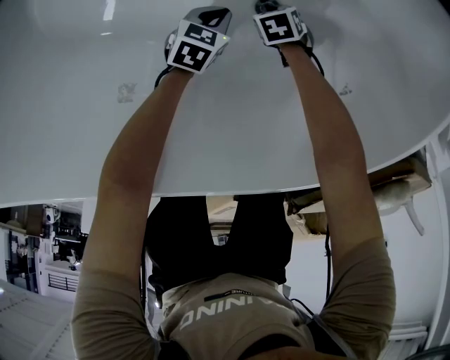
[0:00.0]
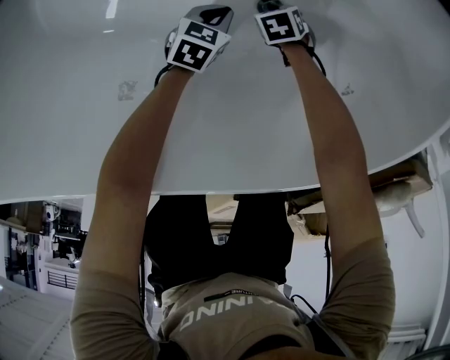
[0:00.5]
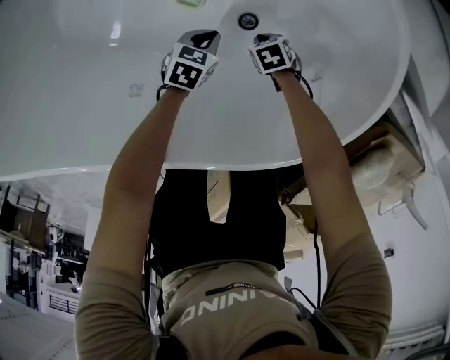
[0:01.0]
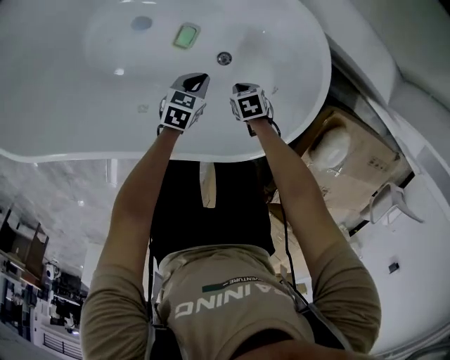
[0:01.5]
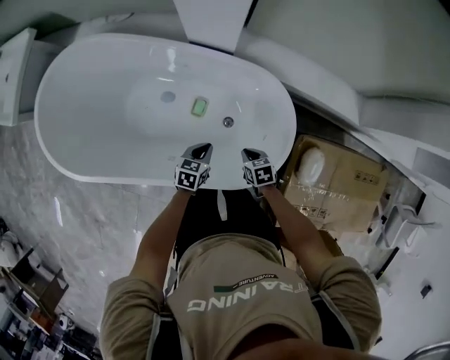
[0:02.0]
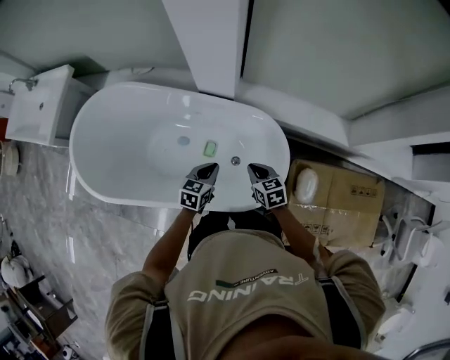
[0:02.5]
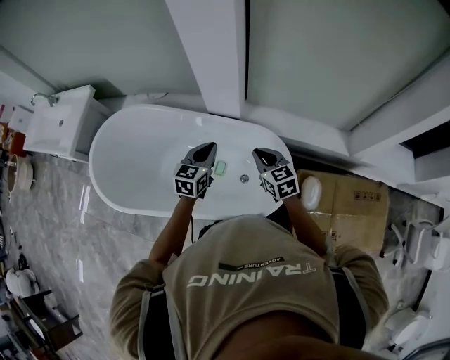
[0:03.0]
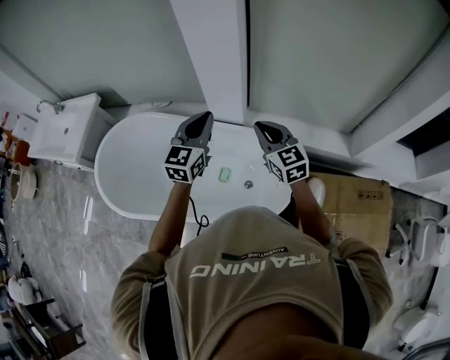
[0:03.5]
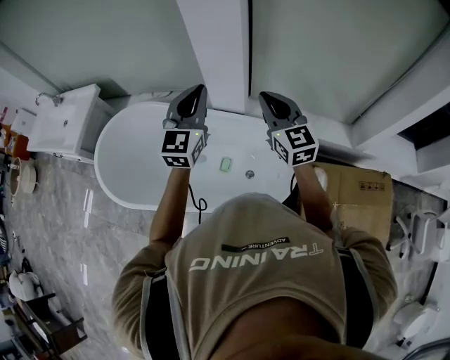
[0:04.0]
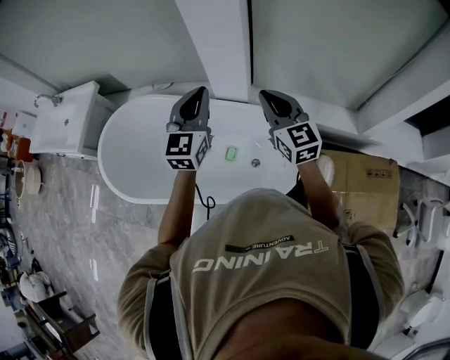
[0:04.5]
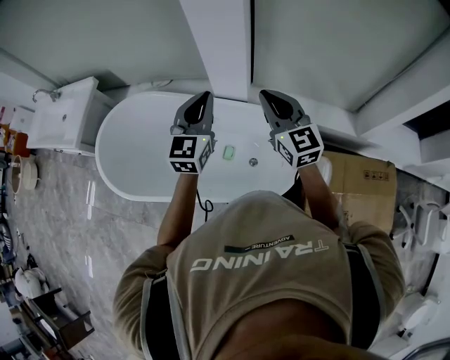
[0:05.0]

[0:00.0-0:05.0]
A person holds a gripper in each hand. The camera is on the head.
0:00.0 to 0:02.5: The grippers both shift upward by about 70 cm. The left gripper turns by about 30 degrees, while the right gripper angles its fingers upward, by some 40 degrees.
0:02.5 to 0:05.0: The two grippers go some 35 cm upward. The right gripper angles its fingers upward, by some 40 degrees; the left gripper angles its fingers upward, by about 30 degrees.

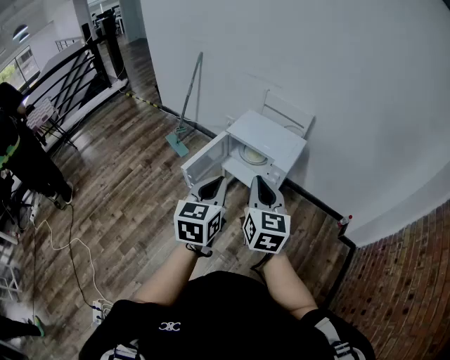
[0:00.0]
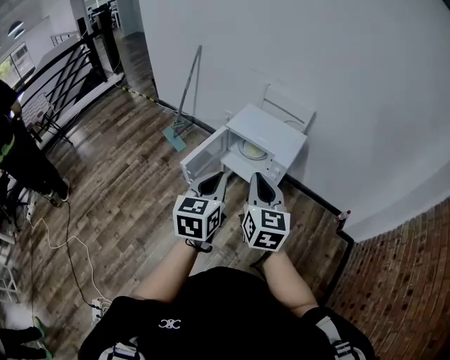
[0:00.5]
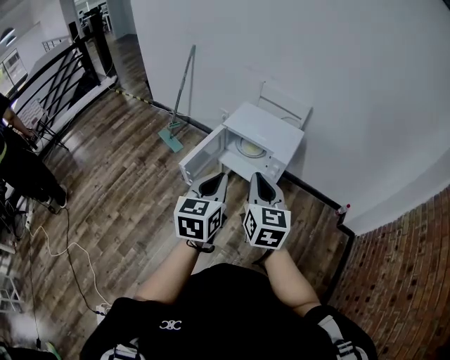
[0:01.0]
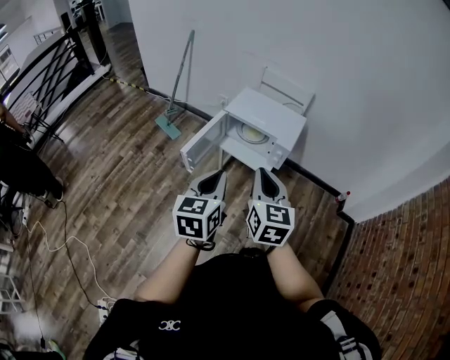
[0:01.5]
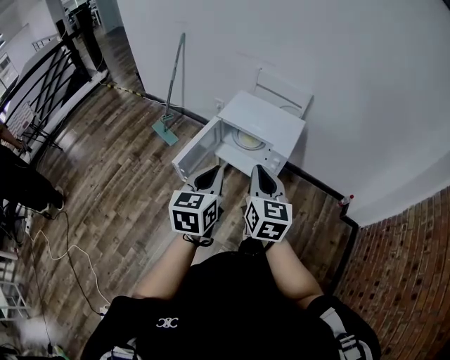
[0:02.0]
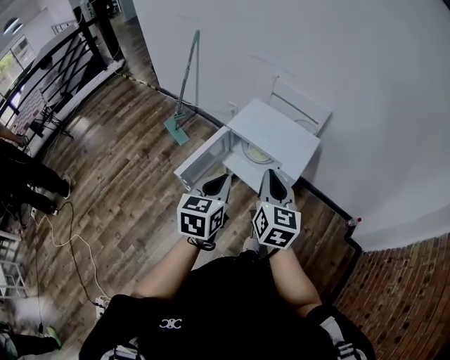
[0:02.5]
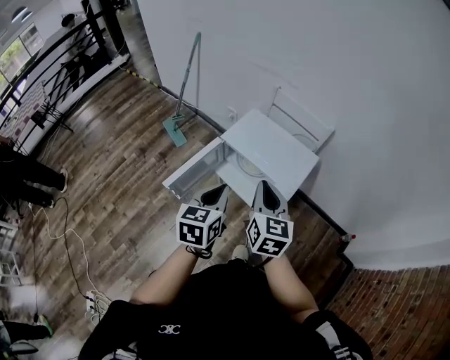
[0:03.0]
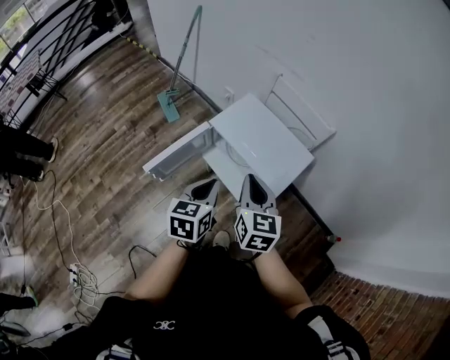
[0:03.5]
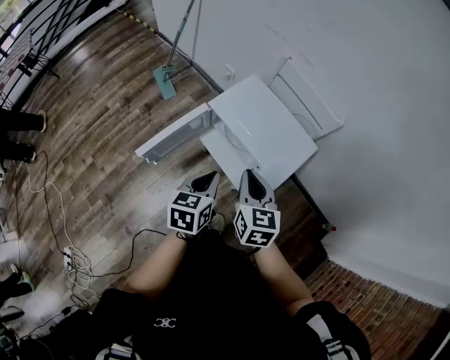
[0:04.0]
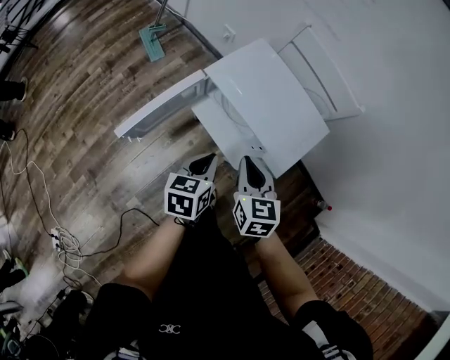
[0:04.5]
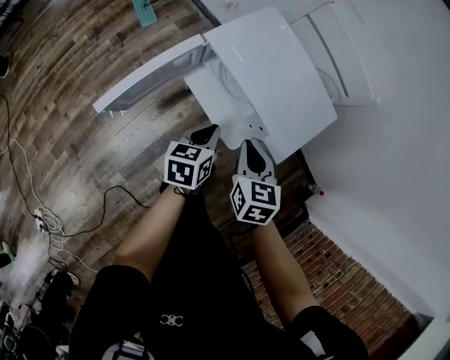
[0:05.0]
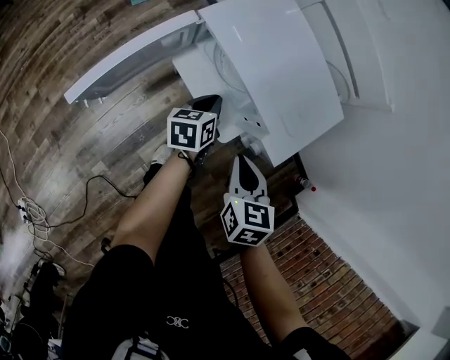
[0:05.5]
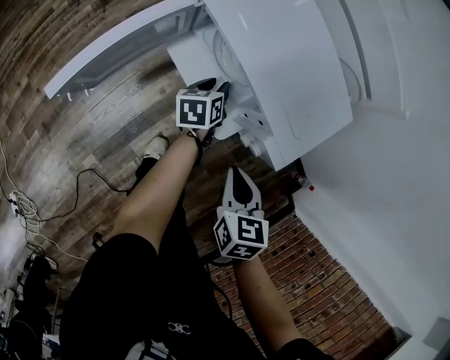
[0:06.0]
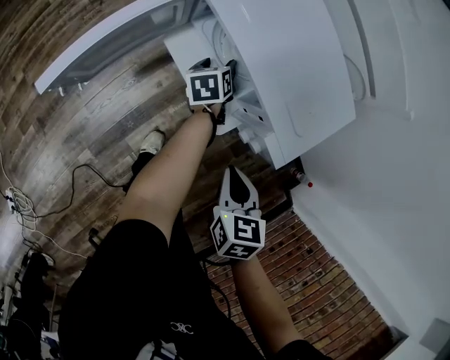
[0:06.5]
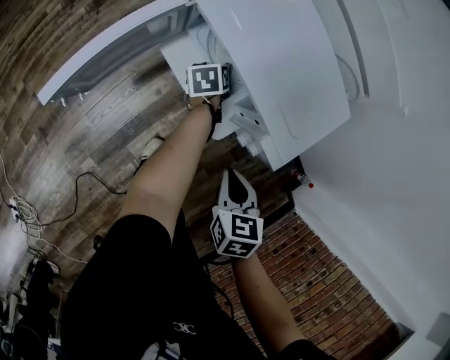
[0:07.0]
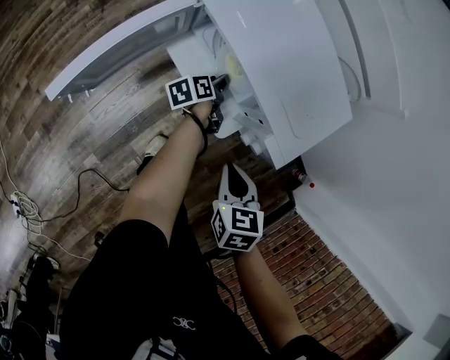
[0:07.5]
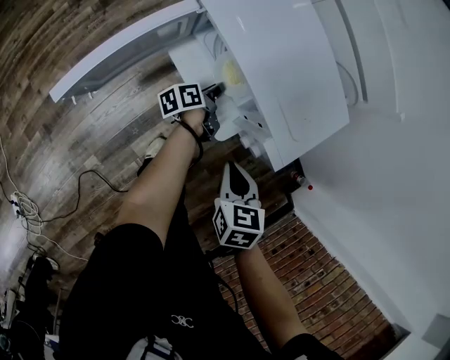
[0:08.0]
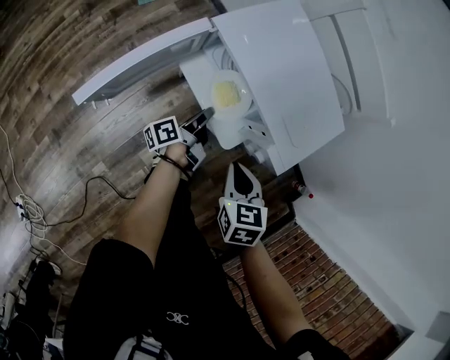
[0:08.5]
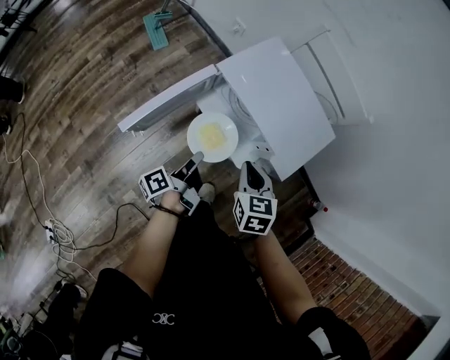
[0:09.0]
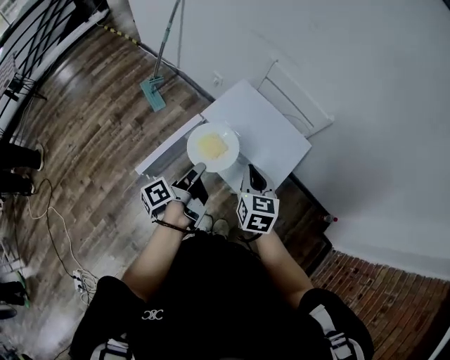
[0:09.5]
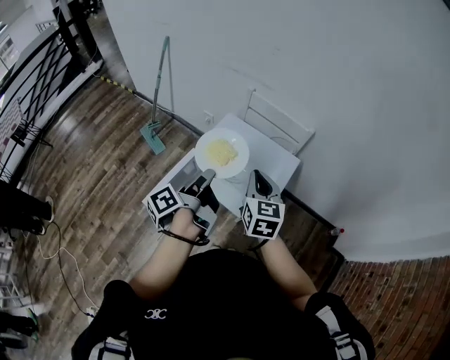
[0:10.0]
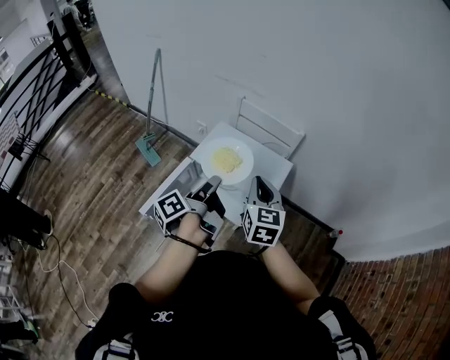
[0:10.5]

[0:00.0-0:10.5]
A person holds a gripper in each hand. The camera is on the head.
0:00.0 to 0:02.0: The right gripper travels downward and forward by approximately 10 cm, while the left gripper shifts some 10 cm forward and downward.
0:02.0 to 0:04.0: The right gripper heads forward and downward, covering about 25 cm, and turns by about 20 degrees, while the left gripper shifts some 25 cm forward, downward and to the right, and rotates roughly 20 degrees.
0:04.0 to 0:06.5: The left gripper travels downward and forward by approximately 40 cm, changes its angle by approximately 30 degrees, and opens its fingers. Meanwhile the right gripper is displaced downward by some 25 cm, and changes its angle by roughly 30 degrees.
0:06.5 to 0:08.5: The left gripper travels backward and upward by roughly 10 cm, angles its fingers upward, by approximately 30 degrees, and closes up. The right gripper changes place by approximately 5 cm.
0:08.5 to 0:10.5: The grippers both shift upward by some 40 cm. The right gripper tilts its fingers roughly 40 degrees upward.

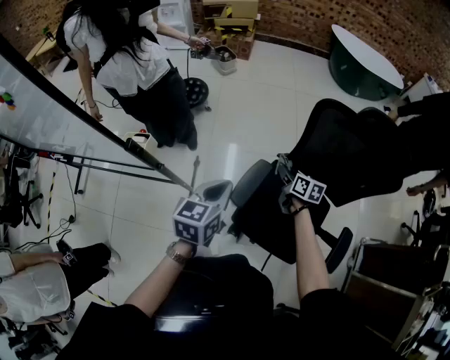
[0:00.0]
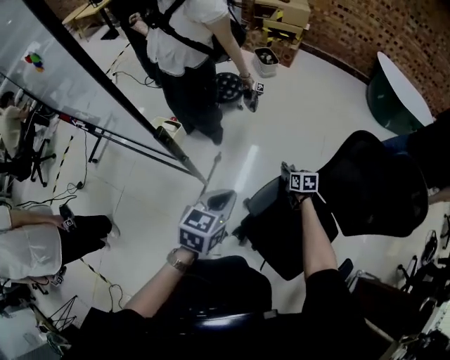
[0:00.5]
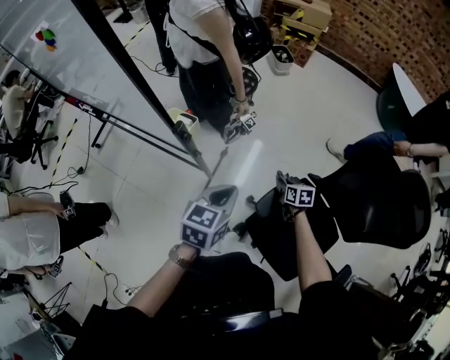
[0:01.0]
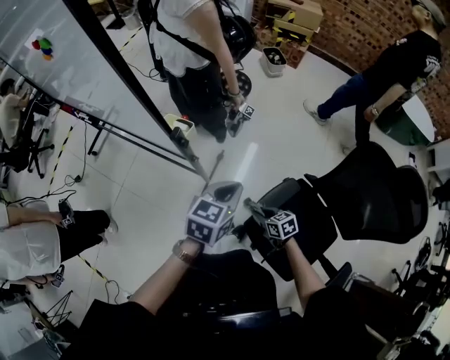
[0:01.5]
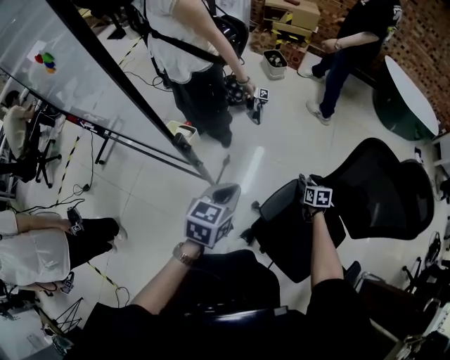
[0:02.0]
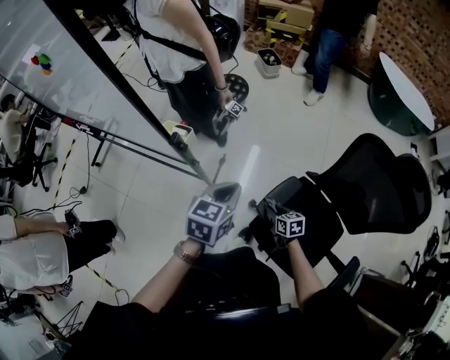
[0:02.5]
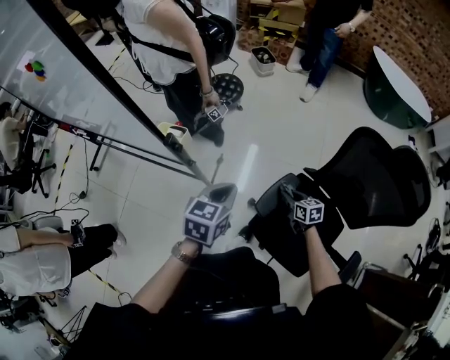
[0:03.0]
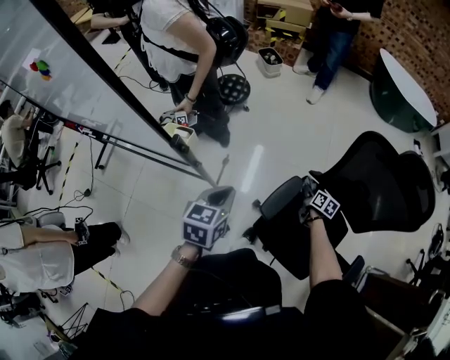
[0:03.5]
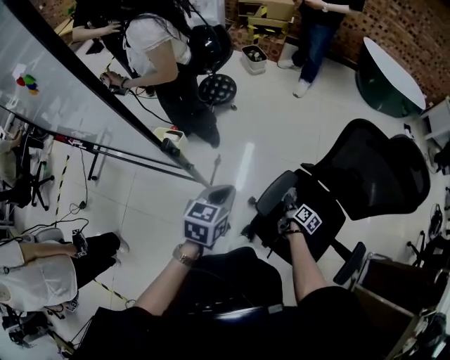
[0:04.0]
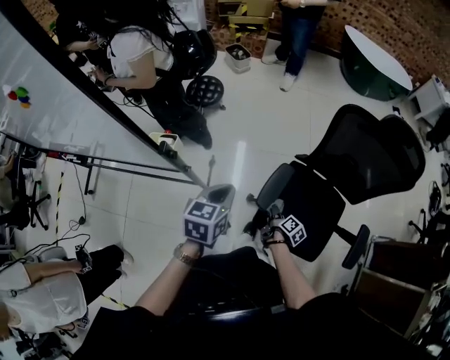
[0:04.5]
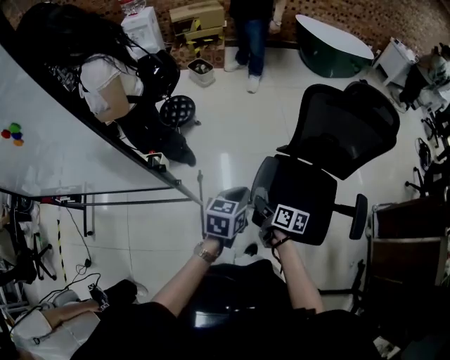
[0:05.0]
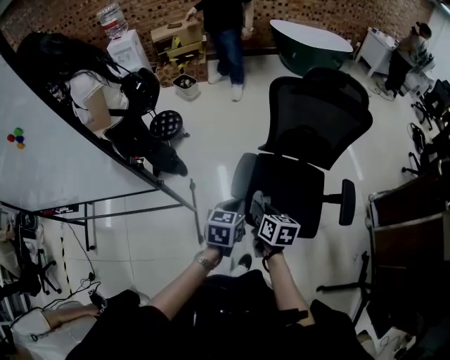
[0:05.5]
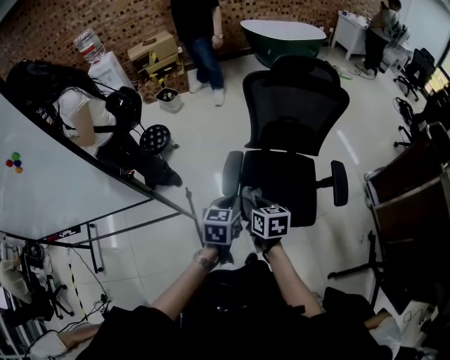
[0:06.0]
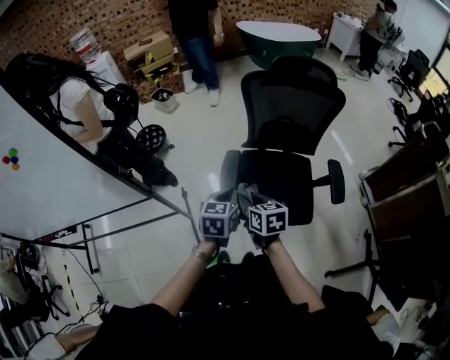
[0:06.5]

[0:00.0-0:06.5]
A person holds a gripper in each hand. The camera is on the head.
0:00.0 to 0:02.0: The right gripper moves downward, about 15 cm, and swivels about 30 degrees, while the left gripper ends up some 10 cm from where it was.
0:02.0 to 0:04.5: The right gripper shifts by about 20 cm, and rotates around the line of its fingers by some 60 degrees, clockwise from behind.
0:04.5 to 0:06.5: The left gripper travels to the right and backward by roughly 20 cm; the right gripper is displaced upward and backward by approximately 30 cm, and twists some 40 degrees counterclockwise, seen from behind.

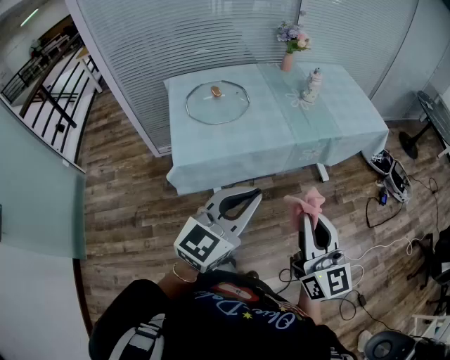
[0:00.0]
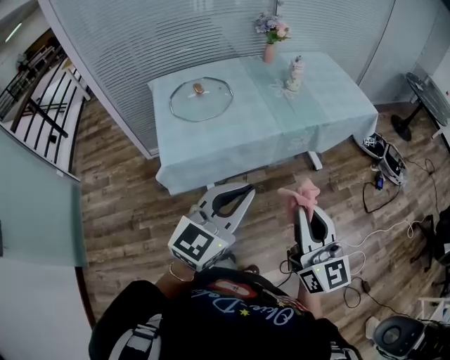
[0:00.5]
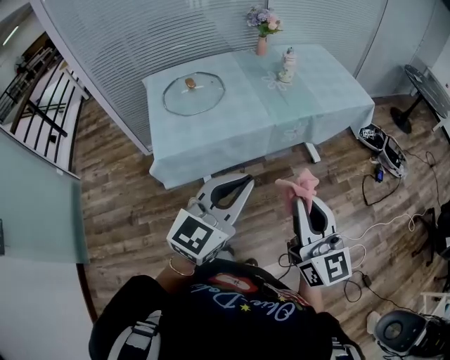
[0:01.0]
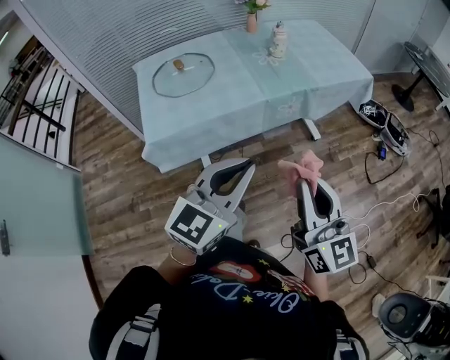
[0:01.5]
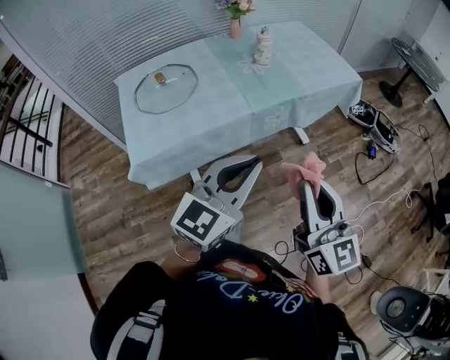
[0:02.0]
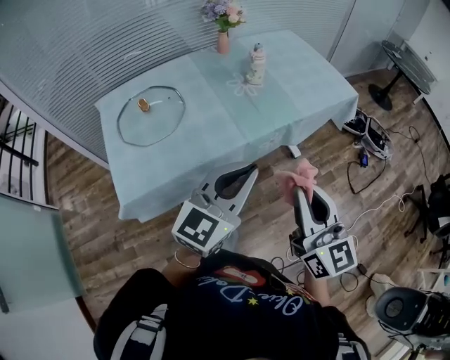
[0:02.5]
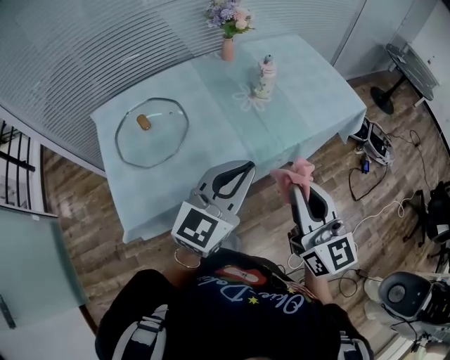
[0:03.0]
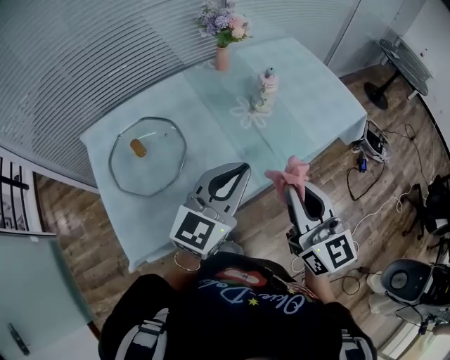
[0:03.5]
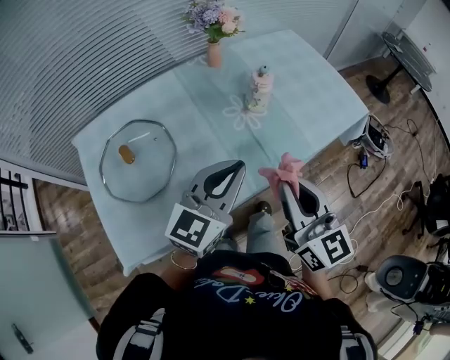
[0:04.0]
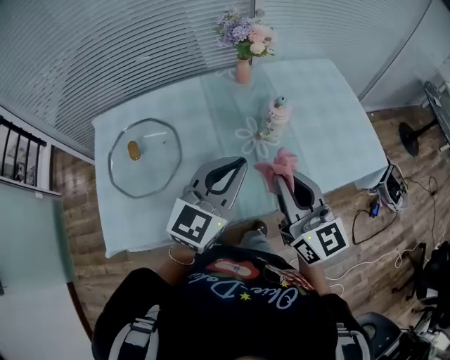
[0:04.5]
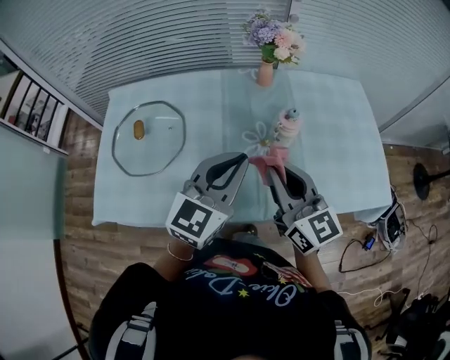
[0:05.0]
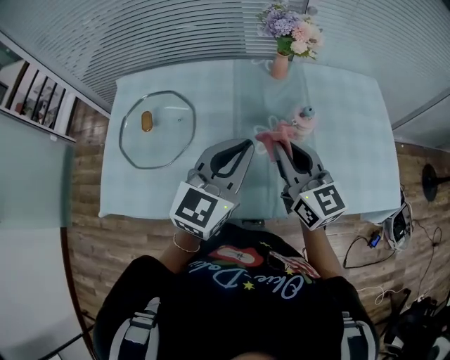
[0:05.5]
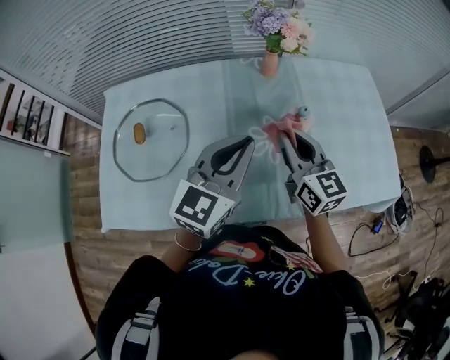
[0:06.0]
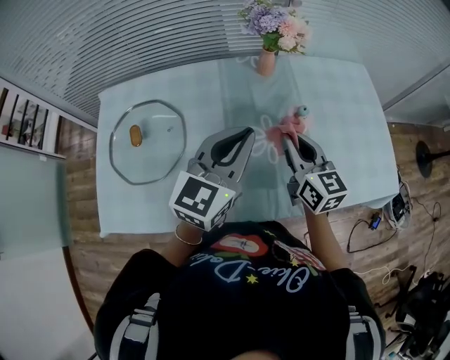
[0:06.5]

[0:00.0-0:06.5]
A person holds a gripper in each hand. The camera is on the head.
0:00.0 to 0:02.0: Both grippers travel together to the right and forward, about 15 cm.
0:02.0 to 0:04.5: The two grippers travel together, forward, about 40 cm.
0:04.5 to 0:06.5: The right gripper travels forward and downward by roughly 20 cm. The left gripper goes about 10 cm forward.
